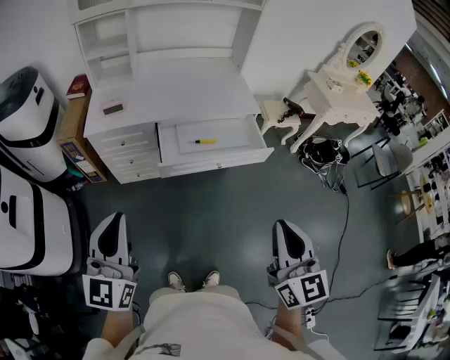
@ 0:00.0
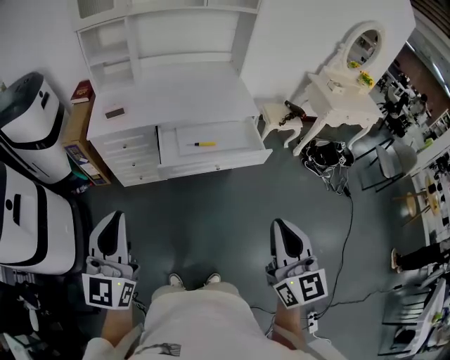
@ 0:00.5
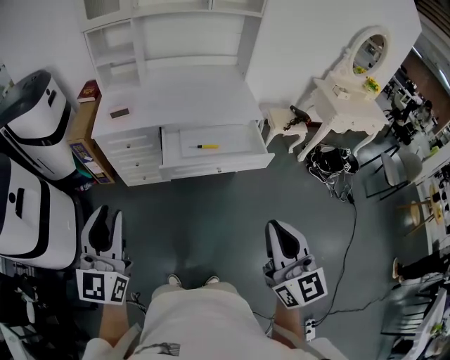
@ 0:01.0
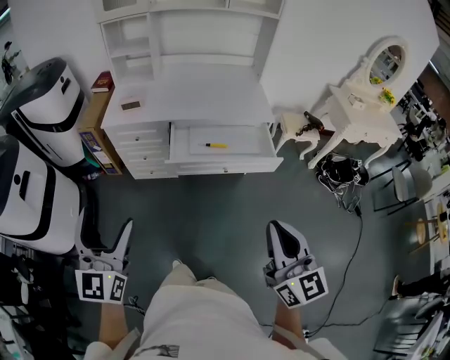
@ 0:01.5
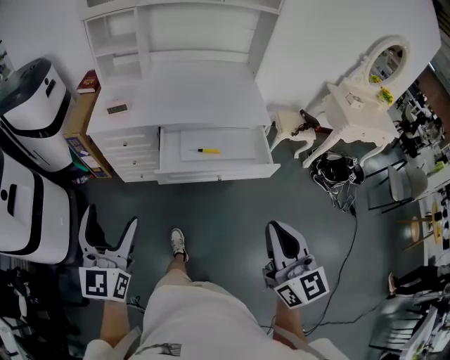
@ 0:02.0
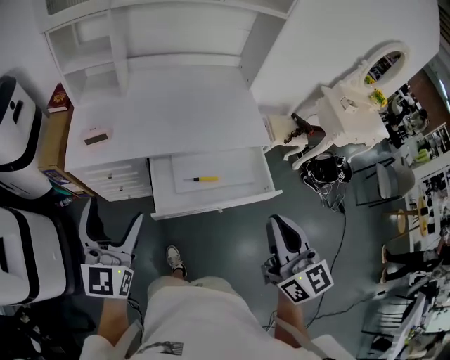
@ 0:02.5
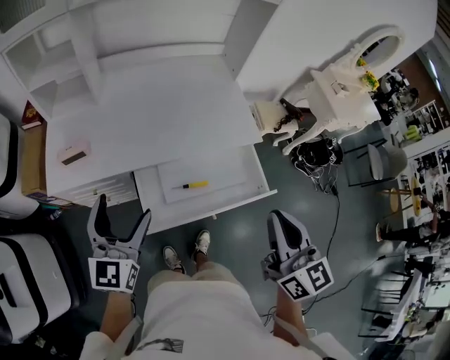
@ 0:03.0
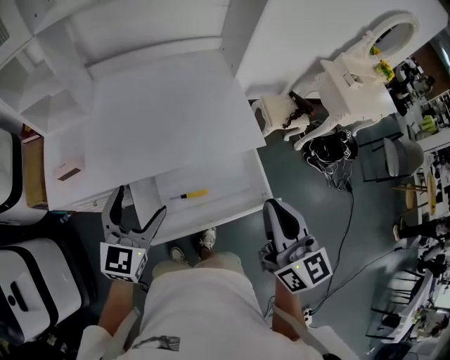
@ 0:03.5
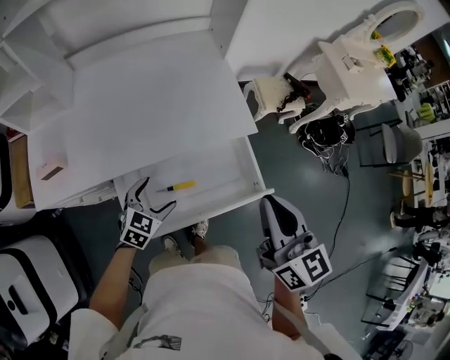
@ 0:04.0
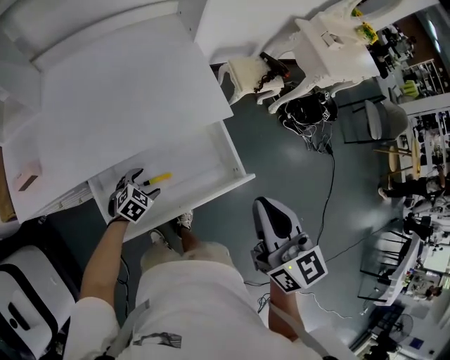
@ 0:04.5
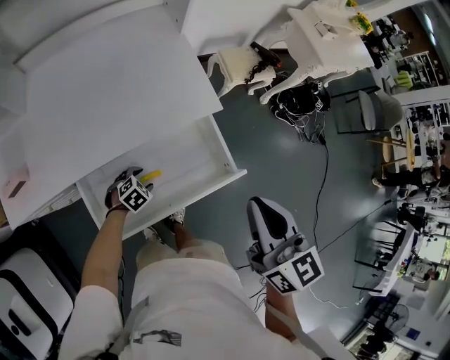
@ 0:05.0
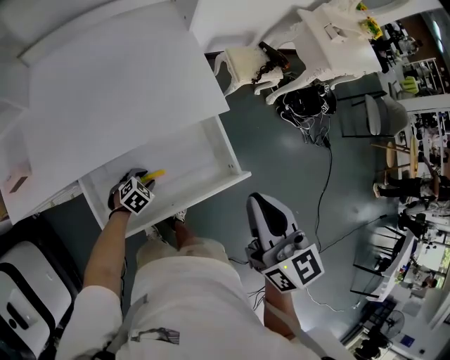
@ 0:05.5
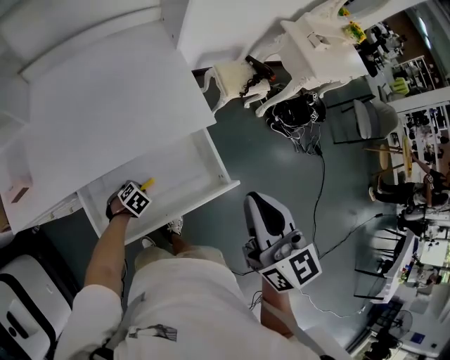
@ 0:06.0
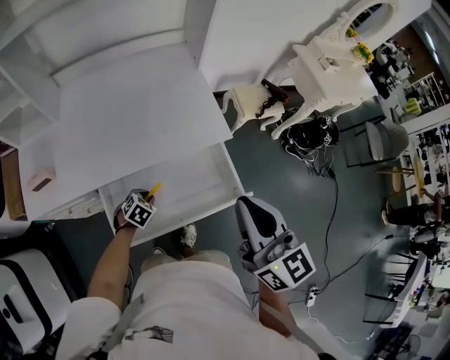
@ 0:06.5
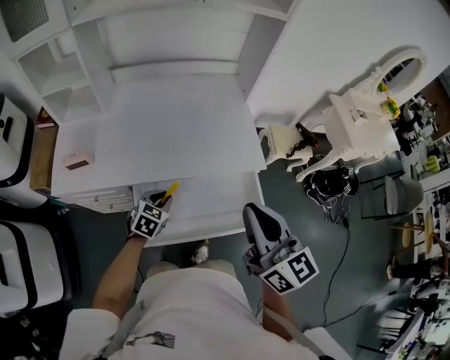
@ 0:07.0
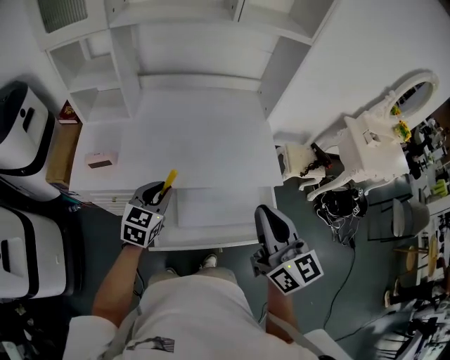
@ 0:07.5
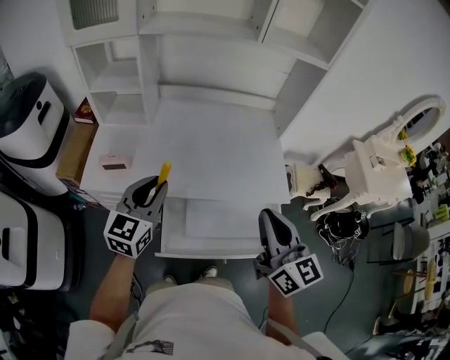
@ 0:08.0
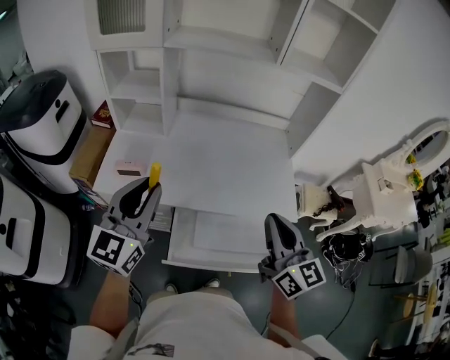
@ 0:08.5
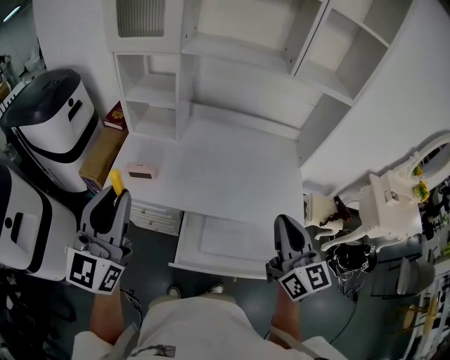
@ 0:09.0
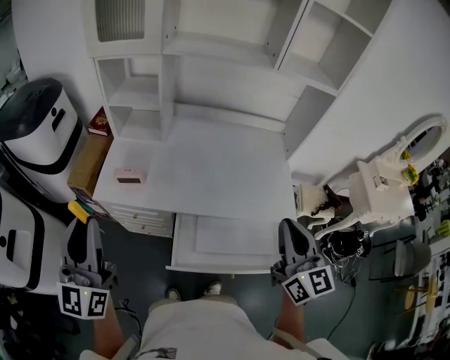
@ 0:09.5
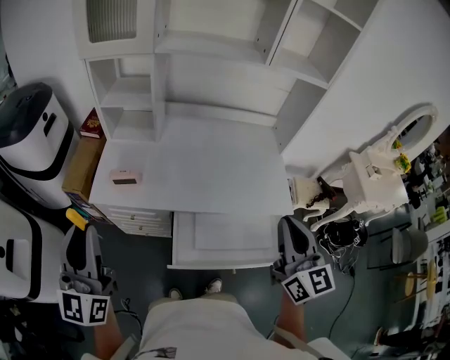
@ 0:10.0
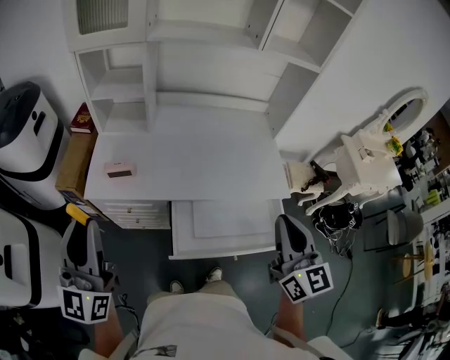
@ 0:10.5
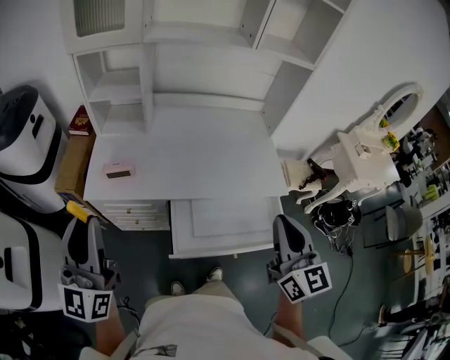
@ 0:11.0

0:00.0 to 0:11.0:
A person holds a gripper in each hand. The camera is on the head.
0:00.0 to 0:02.0: The left gripper moves forward, approximately 5 cm, and opens up. The right gripper travels forward and to the right by about 10 cm.
0:02.0 to 0:03.5: The grippers both shift forward by about 40 cm. The left gripper swivels roughly 30 degrees.
0:03.5 to 0:05.5: The left gripper shifts roughly 40 cm downward, angles its fingers downward, by approximately 50 degrees, and closes its fingers. The right gripper ends up some 10 cm from where it was.
0:05.5 to 0:07.5: The left gripper shifts approximately 35 cm upward, and angles its fingers upward, by roughly 40 degrees. The right gripper moves roughly 15 cm, and swivels some 30 degrees.
0:07.5 to 0:09.0: The right gripper is displaced forward and to the left by approximately 5 cm, while the left gripper travels upward and to the left by some 35 cm, and points its fingers some 40 degrees further upward.
0:09.0 to 0:11.0: The left gripper shifts some 5 cm to the left. Meanwhile the right gripper travels backward by some 10 cm.

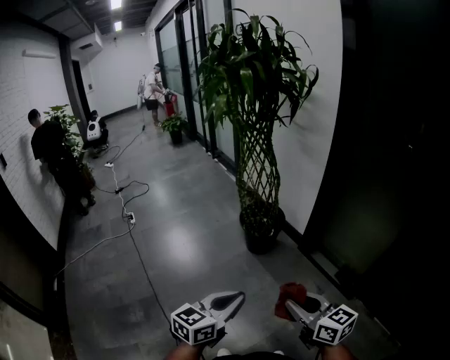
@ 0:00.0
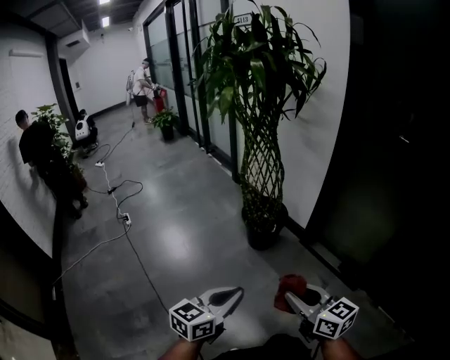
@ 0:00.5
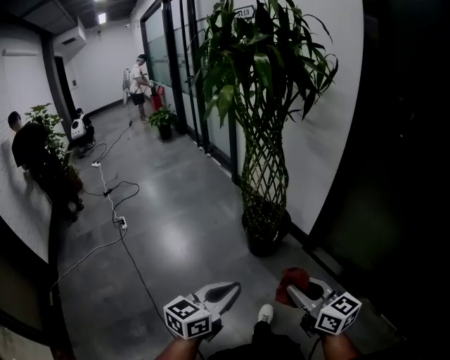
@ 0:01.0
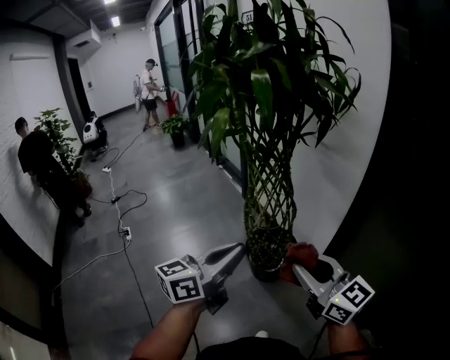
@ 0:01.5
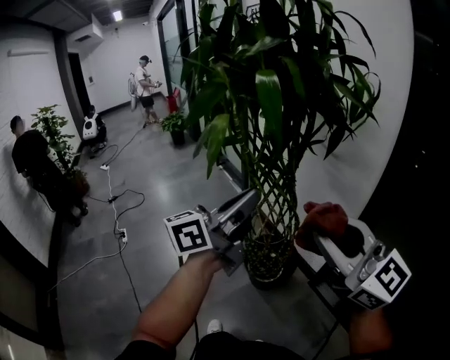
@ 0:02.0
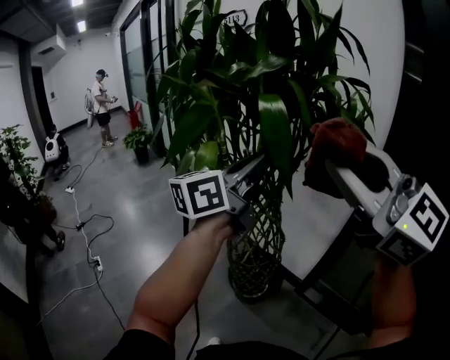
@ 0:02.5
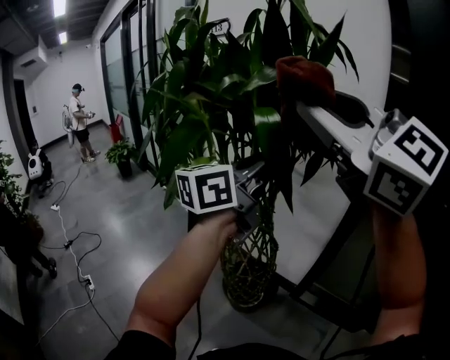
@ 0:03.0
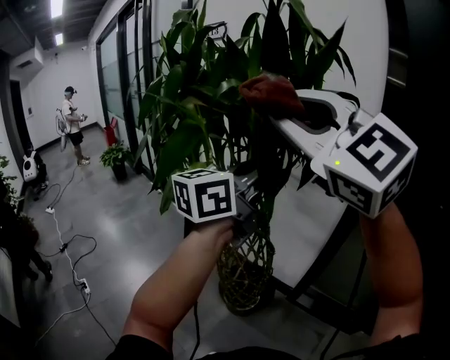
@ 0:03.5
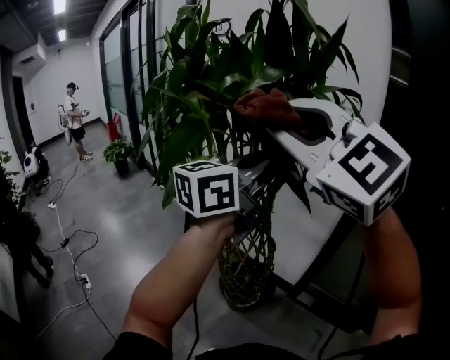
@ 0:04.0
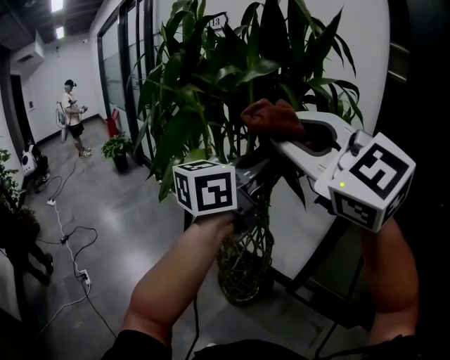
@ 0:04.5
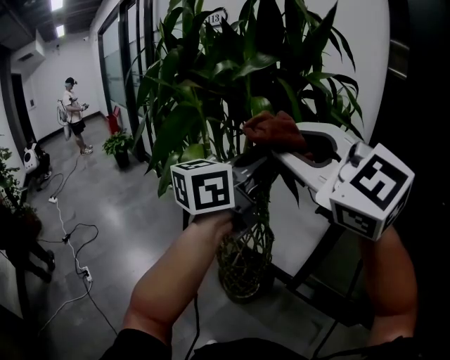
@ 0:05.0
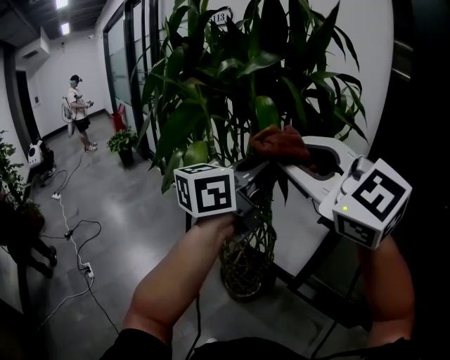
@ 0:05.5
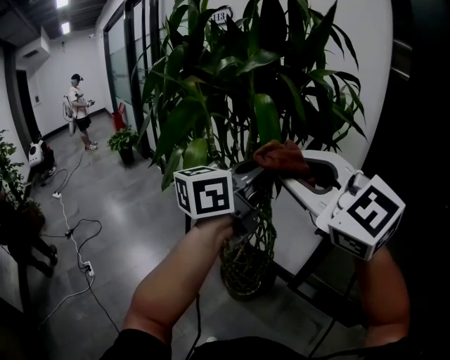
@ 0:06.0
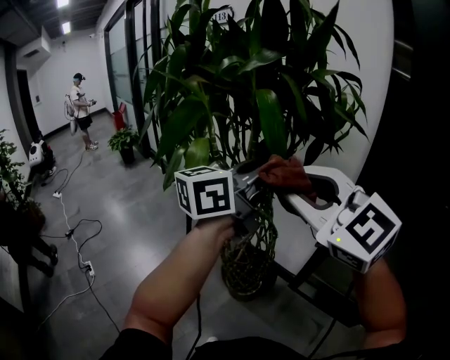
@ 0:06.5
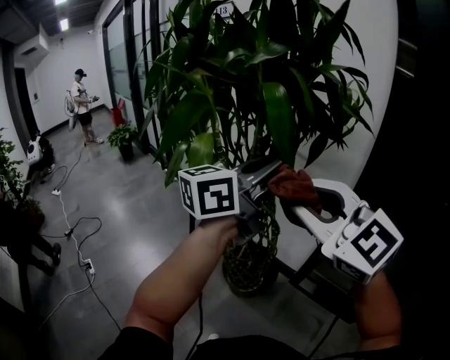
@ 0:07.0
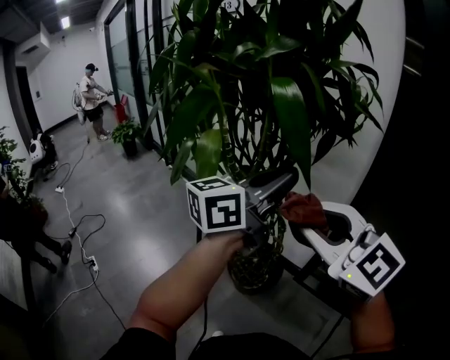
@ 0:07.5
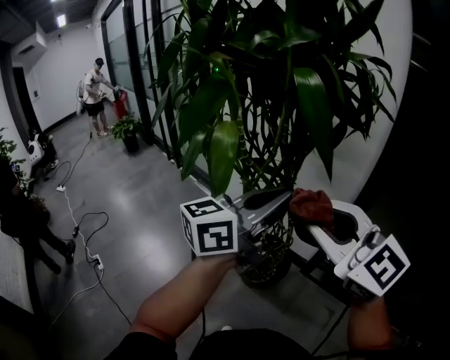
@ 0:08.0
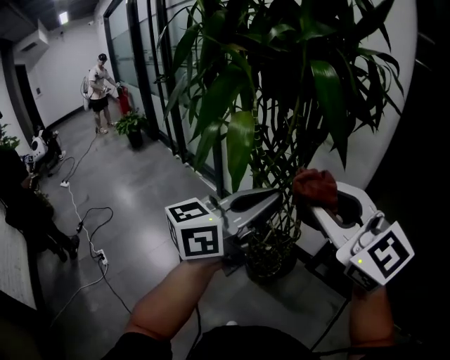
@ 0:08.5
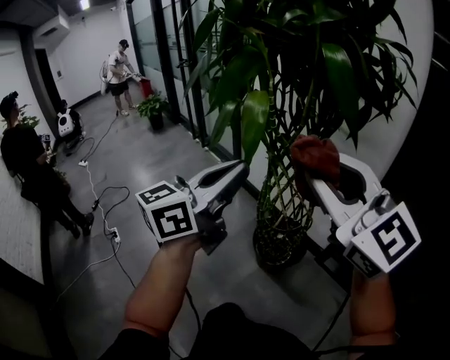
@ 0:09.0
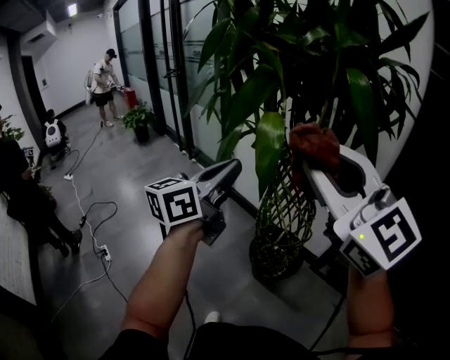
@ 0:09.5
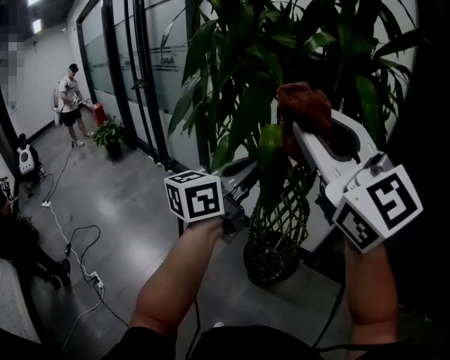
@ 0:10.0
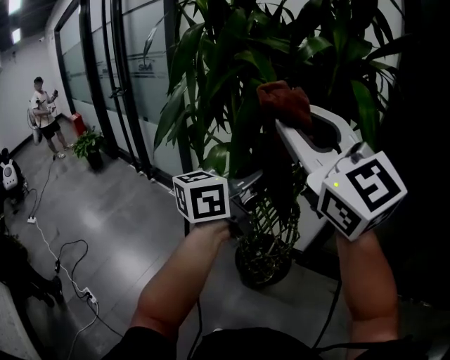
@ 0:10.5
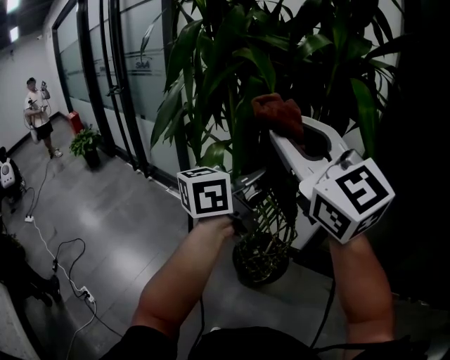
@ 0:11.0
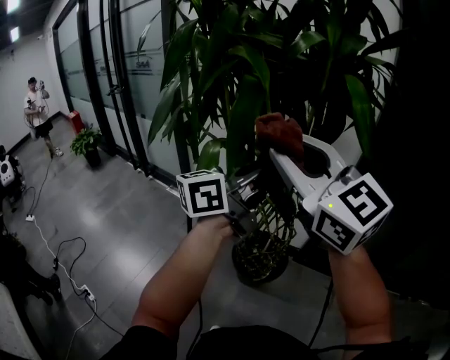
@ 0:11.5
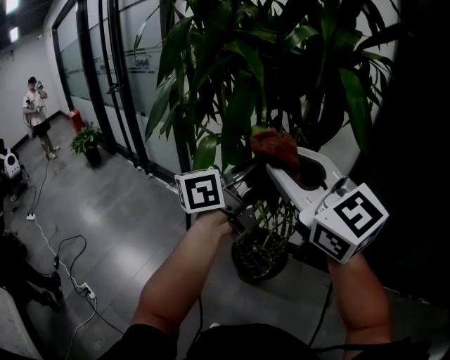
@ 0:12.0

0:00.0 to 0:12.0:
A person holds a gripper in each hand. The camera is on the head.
0:00.0 to 0:02.0: The pair of grippers is taken forward, roughly 50 cm. The two grippers go approximately 25 cm upward. The left gripper points its fingers roughly 30 degrees further upward, while the right gripper changes its angle by about 40 degrees.
0:02.0 to 0:04.0: The left gripper shifts roughly 20 cm upward and forward, and swivels about 20 degrees. The right gripper moves upward, to the left and forward, about 30 cm, and swivels approximately 40 degrees.
0:04.0 to 0:06.0: The right gripper goes roughly 10 cm downward.
0:06.0 to 0:08.0: The left gripper goes approximately 10 cm downward and backward. Meanwhile the right gripper is displaced downward by about 10 cm.
0:08.0 to 0:10.0: The left gripper moves to the left and forward, approximately 20 cm, while the right gripper is displaced to the left, upward and forward by some 20 cm, and rotates some 20 degrees.
0:10.0 to 0:12.0: The left gripper shifts some 5 cm to the right, and rotates about 30 degrees. The right gripper heads downward, covering some 10 cm.

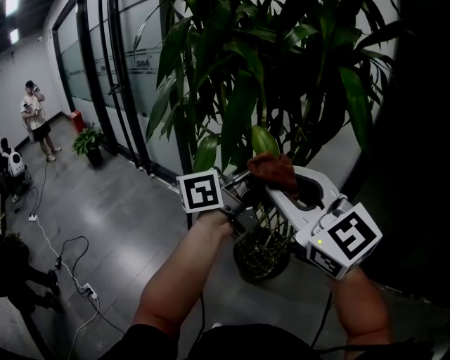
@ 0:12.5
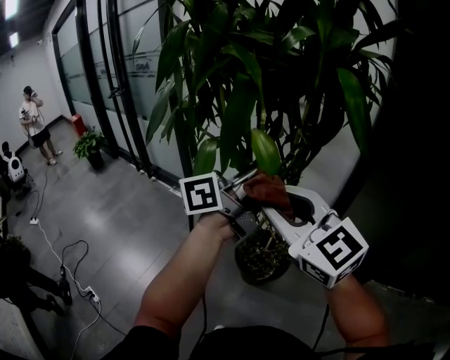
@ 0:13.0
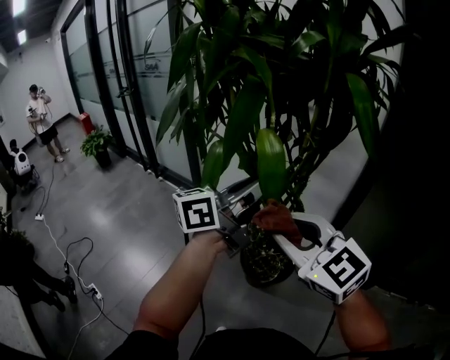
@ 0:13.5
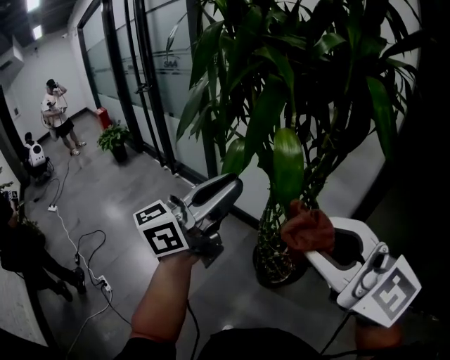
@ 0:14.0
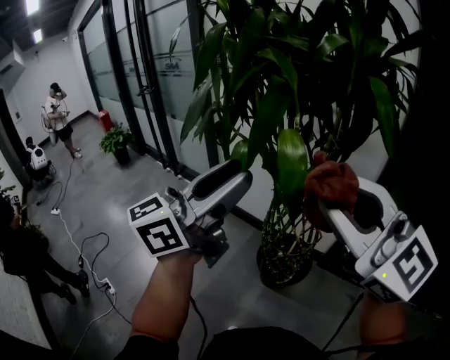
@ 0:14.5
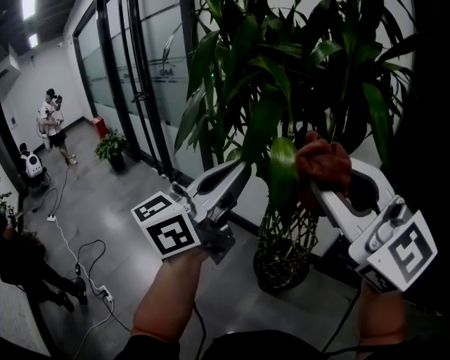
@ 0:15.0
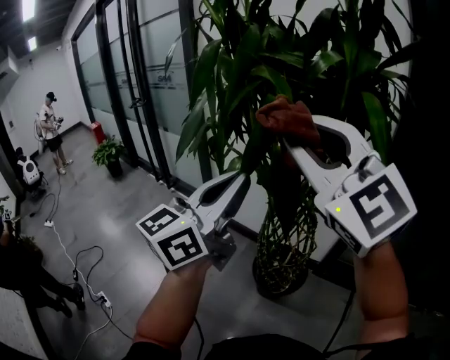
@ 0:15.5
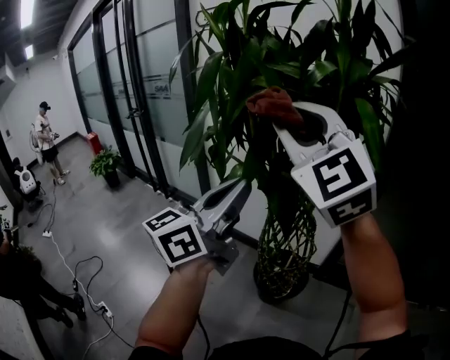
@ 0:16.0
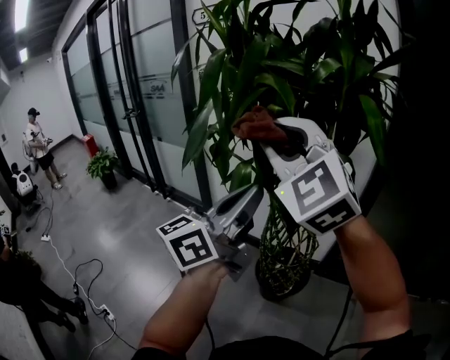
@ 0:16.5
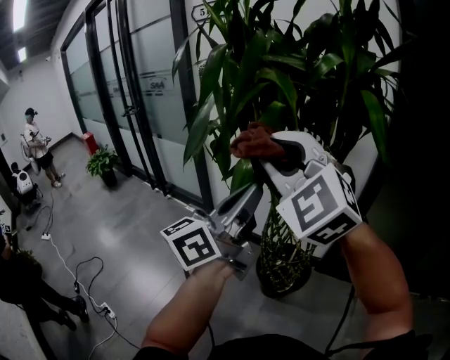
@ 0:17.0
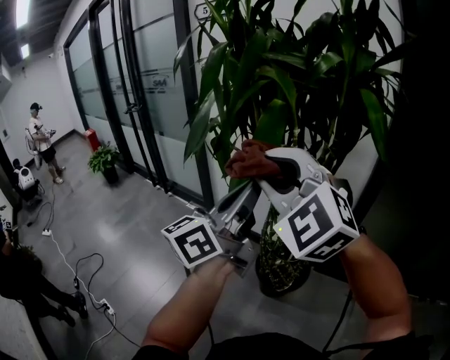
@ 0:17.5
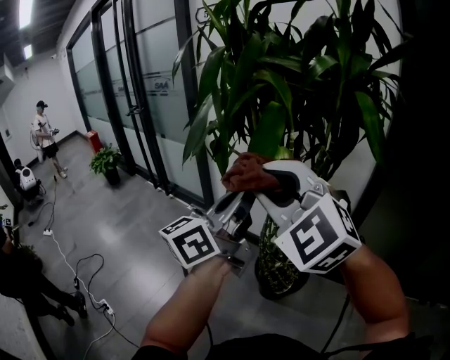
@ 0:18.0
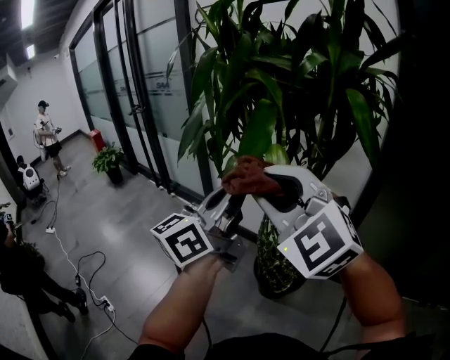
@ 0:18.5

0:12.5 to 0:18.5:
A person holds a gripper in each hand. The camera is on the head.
0:12.5 to 0:14.5: The left gripper is displaced to the left and backward by approximately 15 cm, turns by roughly 30 degrees, and opens; the right gripper is displaced backward by roughly 5 cm.
0:14.5 to 0:16.5: The right gripper is displaced forward and to the left by roughly 15 cm, and changes its angle by some 40 degrees, while the left gripper closes its fingers.
0:16.5 to 0:18.5: The right gripper travels backward and downward by roughly 10 cm.
